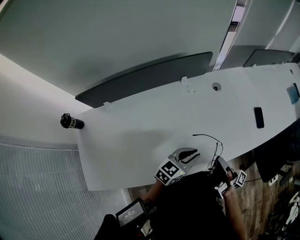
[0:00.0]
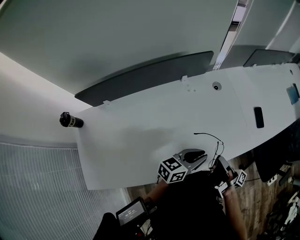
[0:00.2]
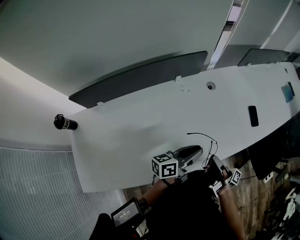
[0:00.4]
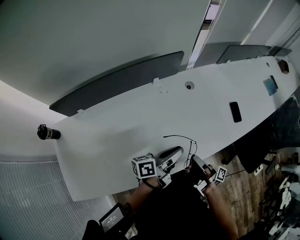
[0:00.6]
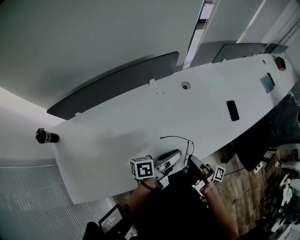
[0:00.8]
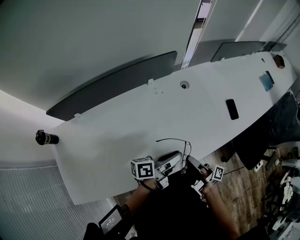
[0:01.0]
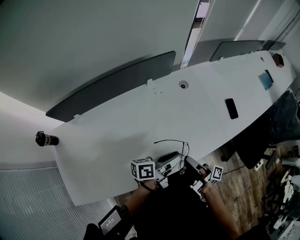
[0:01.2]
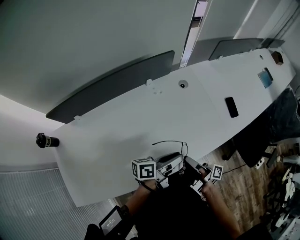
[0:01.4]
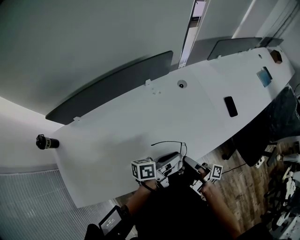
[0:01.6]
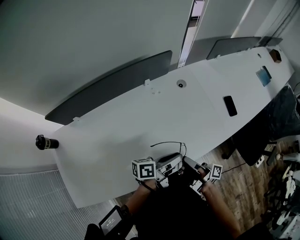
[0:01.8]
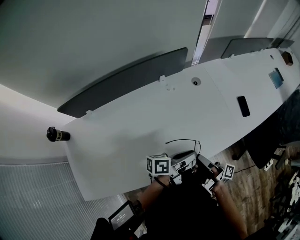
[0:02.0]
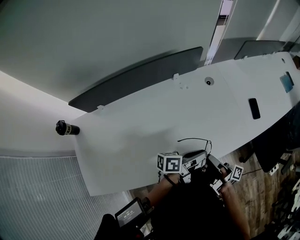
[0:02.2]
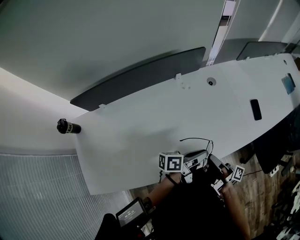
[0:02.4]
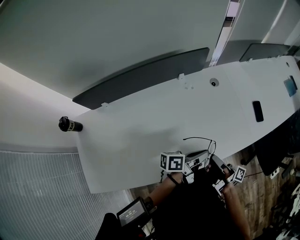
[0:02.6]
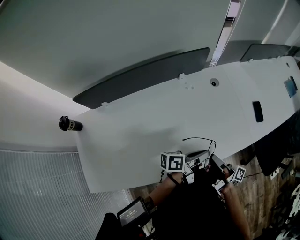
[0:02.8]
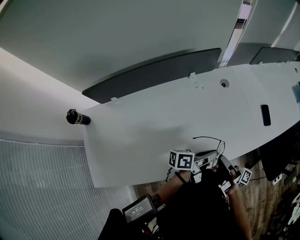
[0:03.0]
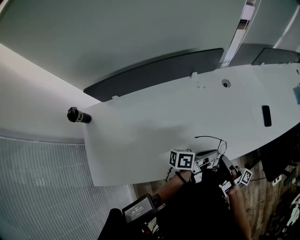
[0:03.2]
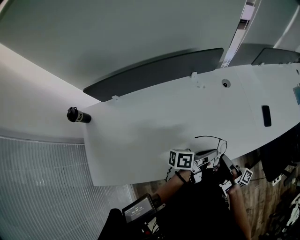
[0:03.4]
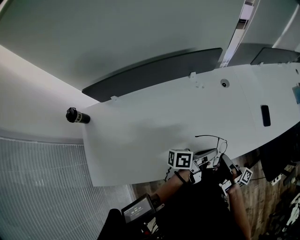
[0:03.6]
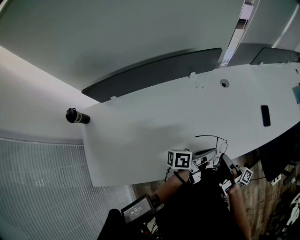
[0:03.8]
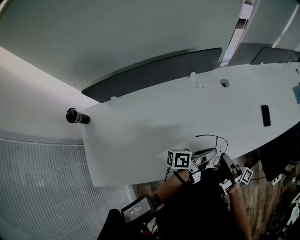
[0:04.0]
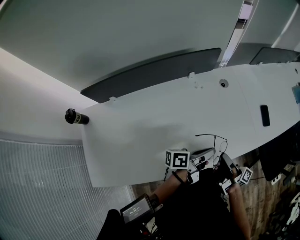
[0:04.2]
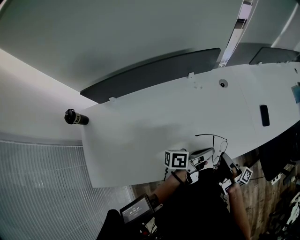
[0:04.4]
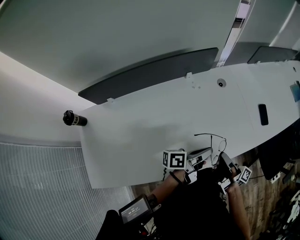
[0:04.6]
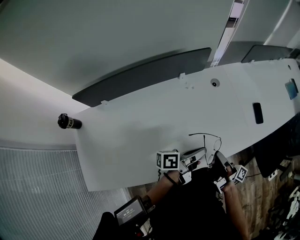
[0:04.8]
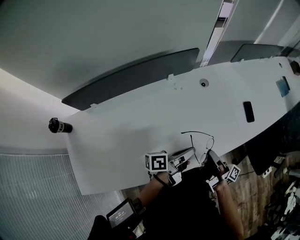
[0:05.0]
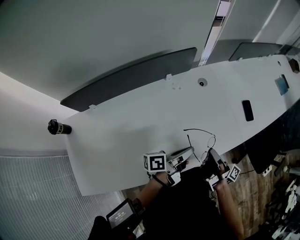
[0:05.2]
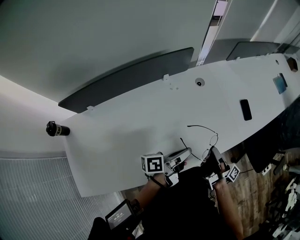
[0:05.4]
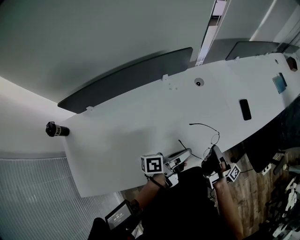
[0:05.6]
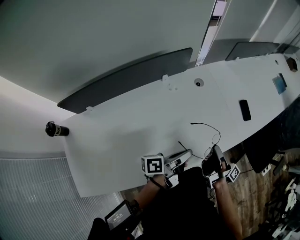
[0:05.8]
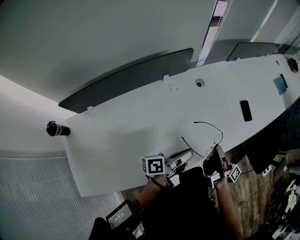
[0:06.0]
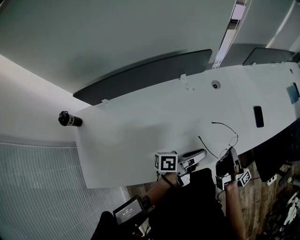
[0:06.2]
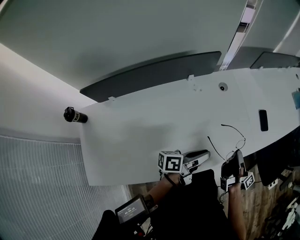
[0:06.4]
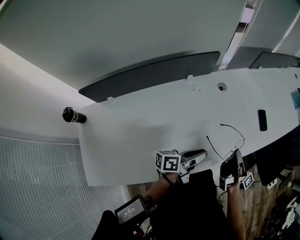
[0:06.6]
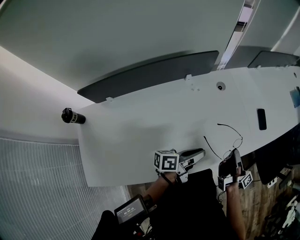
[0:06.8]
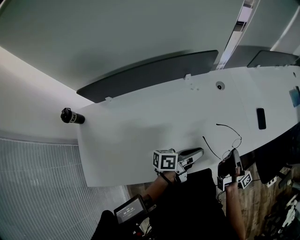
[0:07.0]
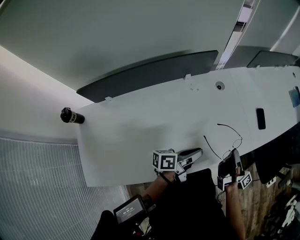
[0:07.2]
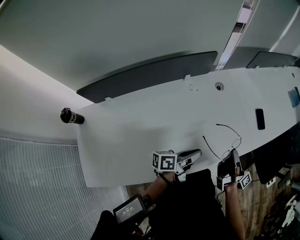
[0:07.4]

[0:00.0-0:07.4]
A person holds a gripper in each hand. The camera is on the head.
0.0 to 1.4 s: The left gripper rolls counterclockwise, seen from behind, by roughly 50 degrees.
1.4 to 3.0 s: The left gripper closes.

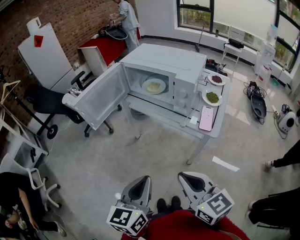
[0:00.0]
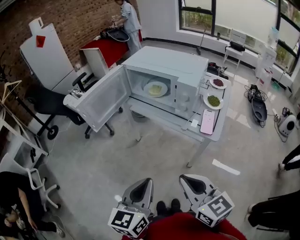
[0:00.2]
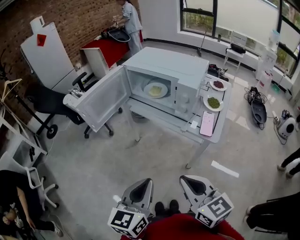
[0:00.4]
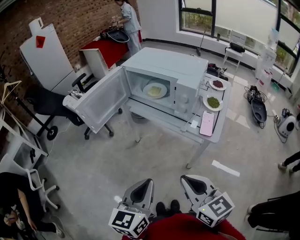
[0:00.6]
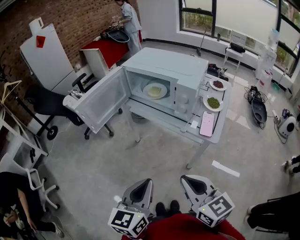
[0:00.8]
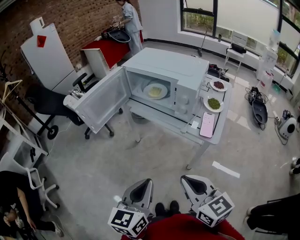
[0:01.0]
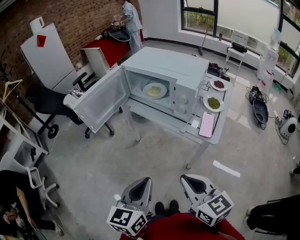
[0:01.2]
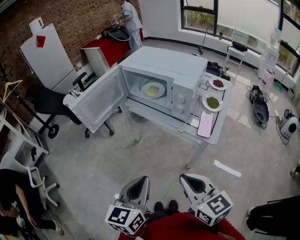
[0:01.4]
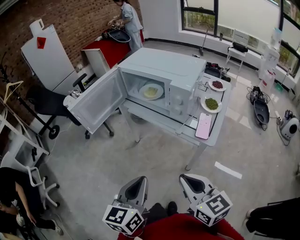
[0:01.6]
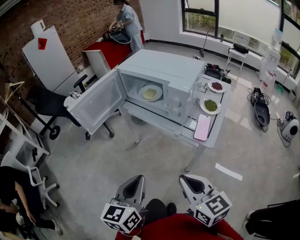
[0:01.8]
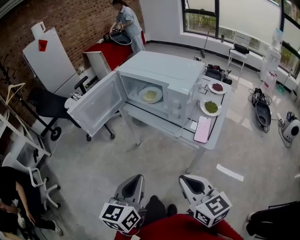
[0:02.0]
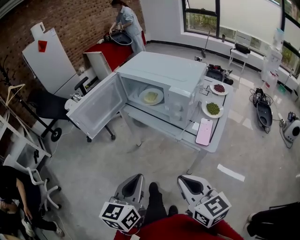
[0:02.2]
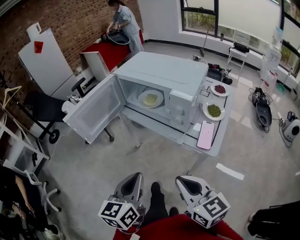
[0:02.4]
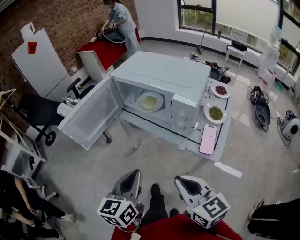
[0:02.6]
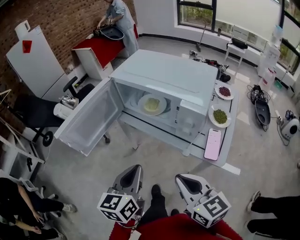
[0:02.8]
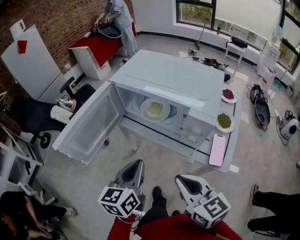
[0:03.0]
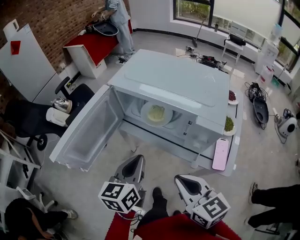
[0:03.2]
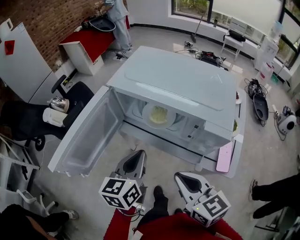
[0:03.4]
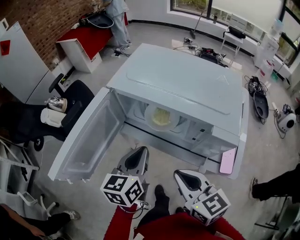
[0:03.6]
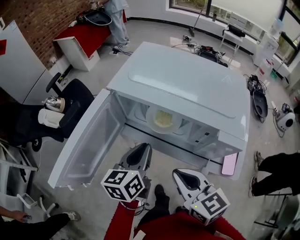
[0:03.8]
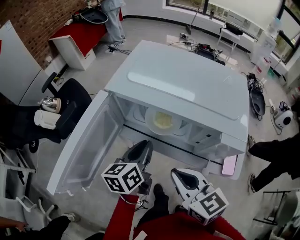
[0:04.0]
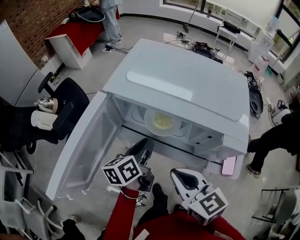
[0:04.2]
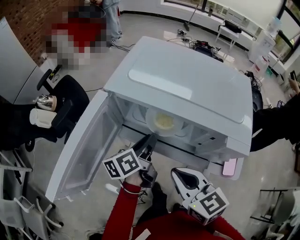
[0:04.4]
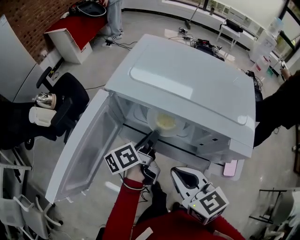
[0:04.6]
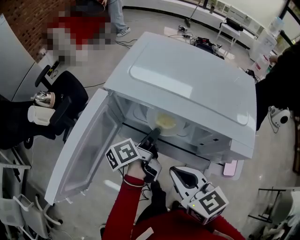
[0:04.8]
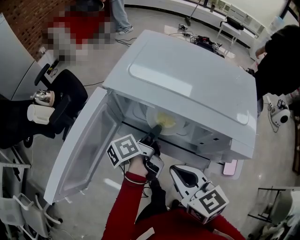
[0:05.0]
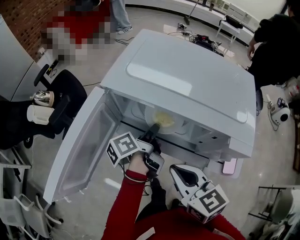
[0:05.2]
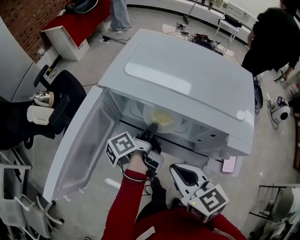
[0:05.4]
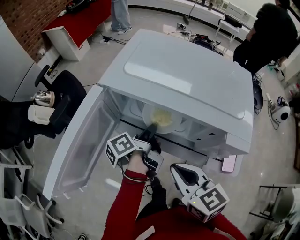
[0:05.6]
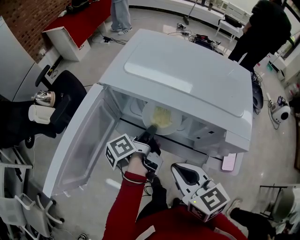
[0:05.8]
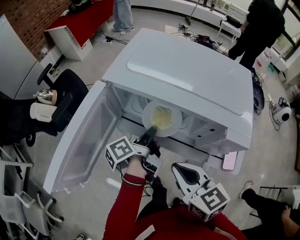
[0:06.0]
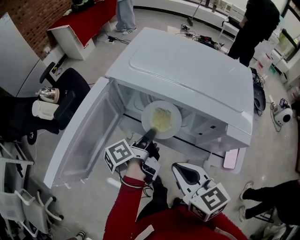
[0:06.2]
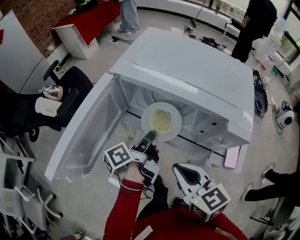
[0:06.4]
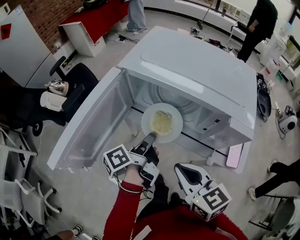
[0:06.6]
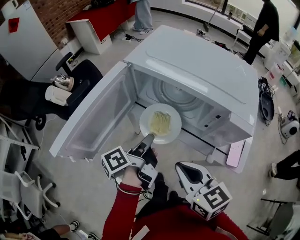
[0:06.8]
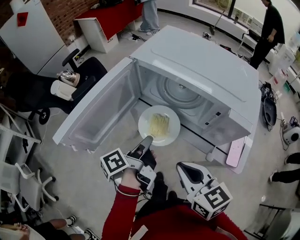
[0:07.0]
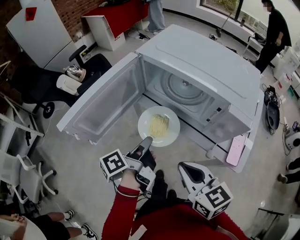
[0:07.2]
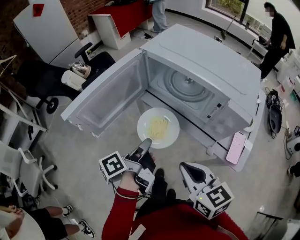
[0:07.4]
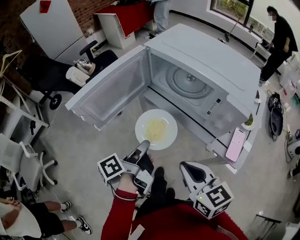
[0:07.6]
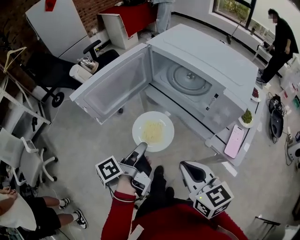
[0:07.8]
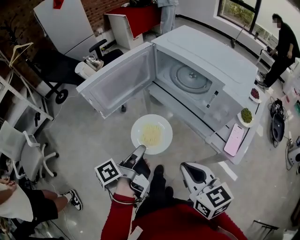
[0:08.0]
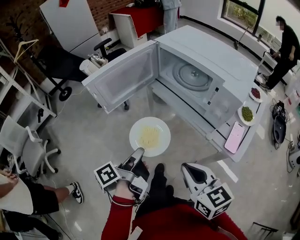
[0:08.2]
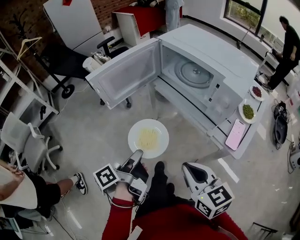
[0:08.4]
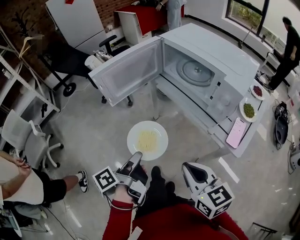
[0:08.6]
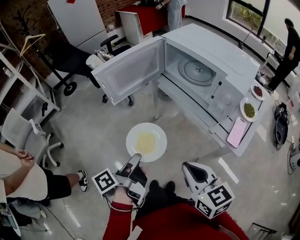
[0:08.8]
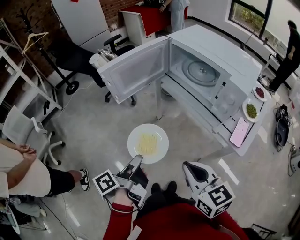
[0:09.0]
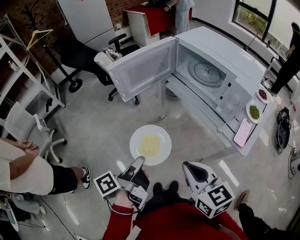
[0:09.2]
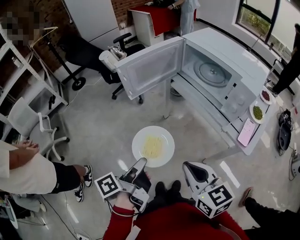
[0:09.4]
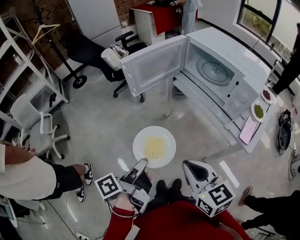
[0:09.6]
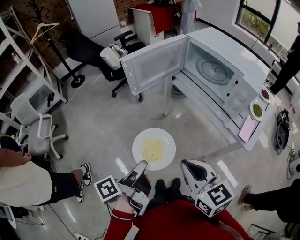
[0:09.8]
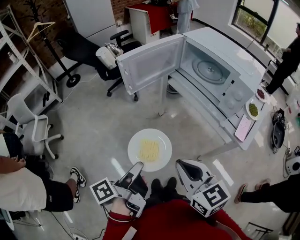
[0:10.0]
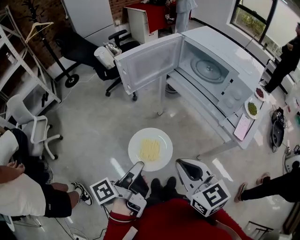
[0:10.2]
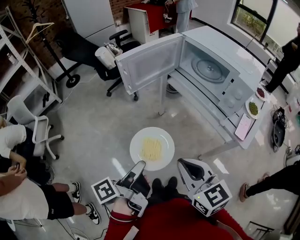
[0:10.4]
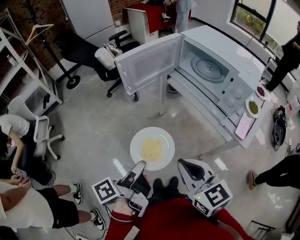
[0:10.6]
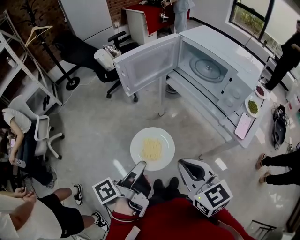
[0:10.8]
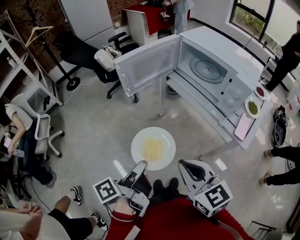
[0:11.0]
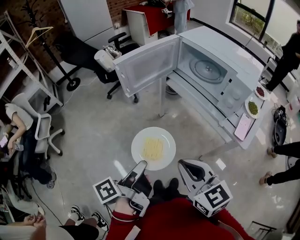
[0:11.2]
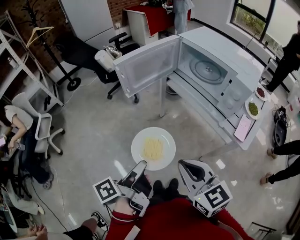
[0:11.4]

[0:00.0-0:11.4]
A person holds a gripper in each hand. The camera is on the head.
0.0 to 1.4 s: There are only small adjustments of the grippers.
1.4 to 2.8 s: Both grippers travel together forward, about 15 cm.
2.8 to 4.2 s: The right gripper is displaced forward and to the left by some 15 cm, while the left gripper is displaced forward and downward by some 25 cm, and changes its angle by about 30 degrees.
4.2 to 5.6 s: The left gripper turns by some 40 degrees.
5.6 to 7.2 s: The left gripper goes roughly 15 cm backward and to the left, while the right gripper is displaced backward by about 5 cm.
7.2 to 8.6 s: The two grippers go about 20 cm backward.
8.6 to 10.0 s: The left gripper moves backward and to the left, approximately 10 cm. The right gripper travels to the left by about 10 cm.
10.0 to 11.4 s: The grippers stay close to where they were, moving slightly.

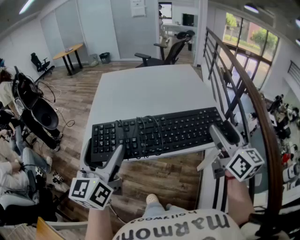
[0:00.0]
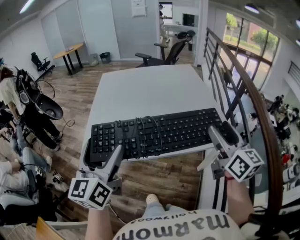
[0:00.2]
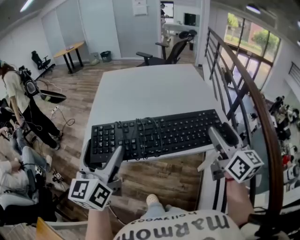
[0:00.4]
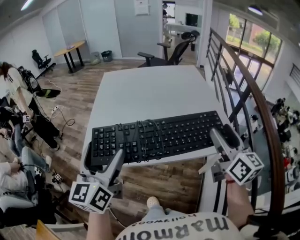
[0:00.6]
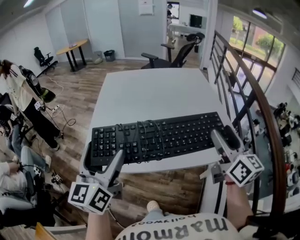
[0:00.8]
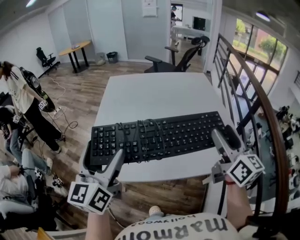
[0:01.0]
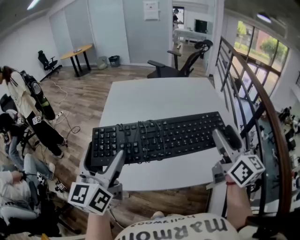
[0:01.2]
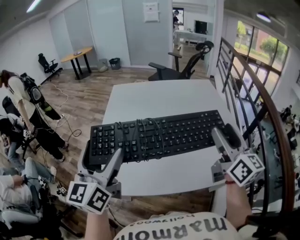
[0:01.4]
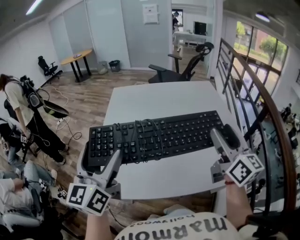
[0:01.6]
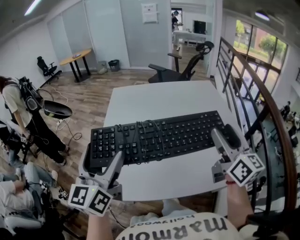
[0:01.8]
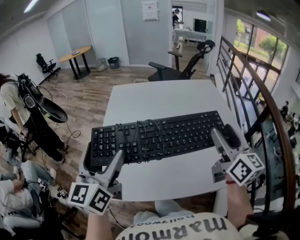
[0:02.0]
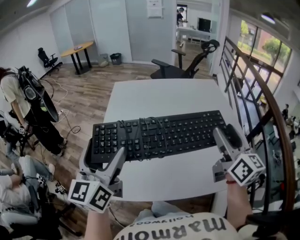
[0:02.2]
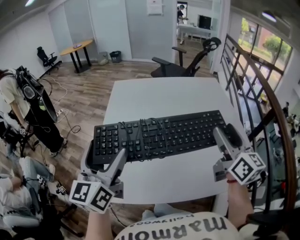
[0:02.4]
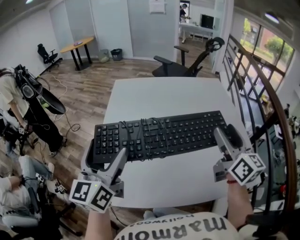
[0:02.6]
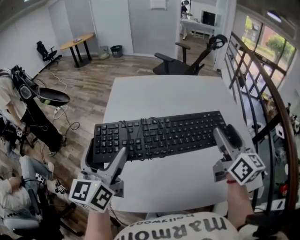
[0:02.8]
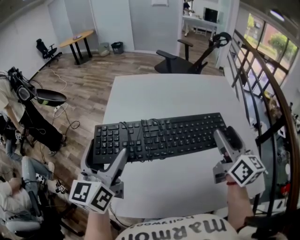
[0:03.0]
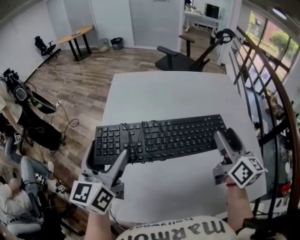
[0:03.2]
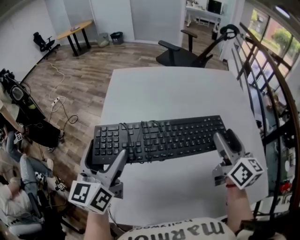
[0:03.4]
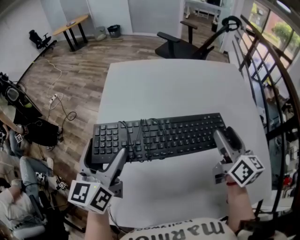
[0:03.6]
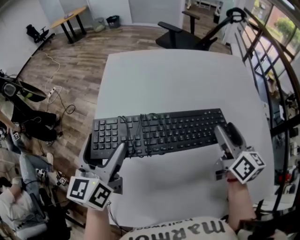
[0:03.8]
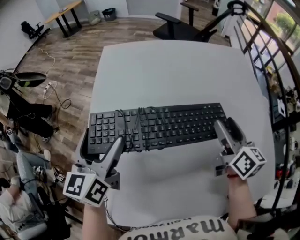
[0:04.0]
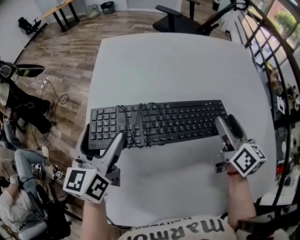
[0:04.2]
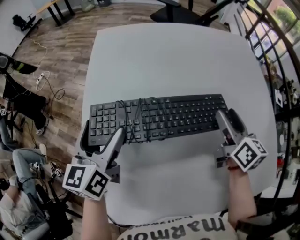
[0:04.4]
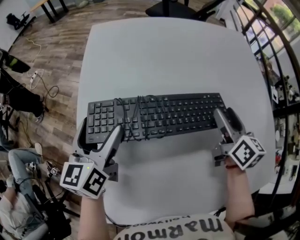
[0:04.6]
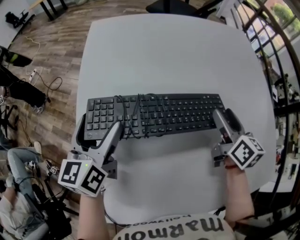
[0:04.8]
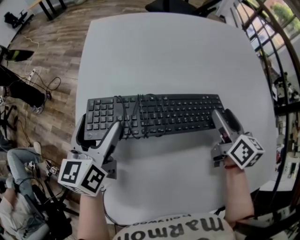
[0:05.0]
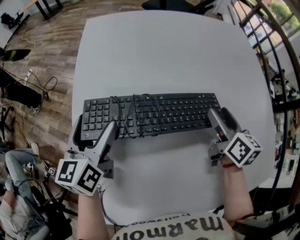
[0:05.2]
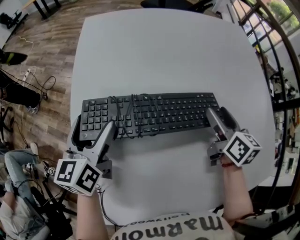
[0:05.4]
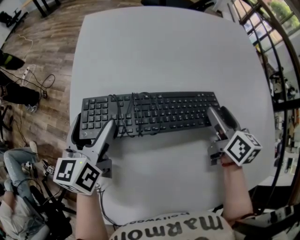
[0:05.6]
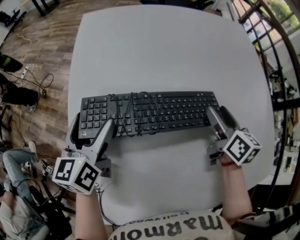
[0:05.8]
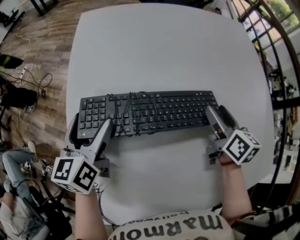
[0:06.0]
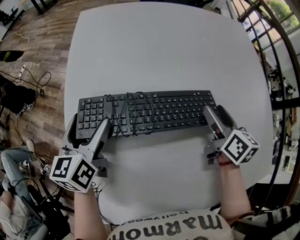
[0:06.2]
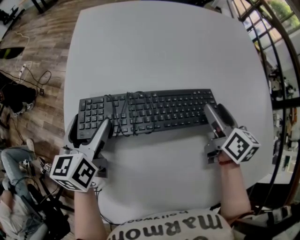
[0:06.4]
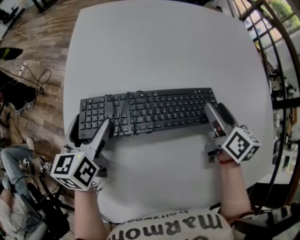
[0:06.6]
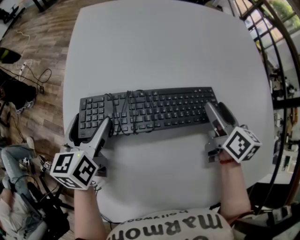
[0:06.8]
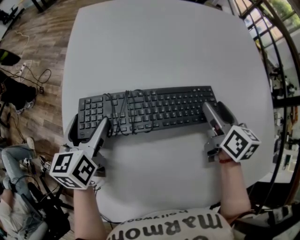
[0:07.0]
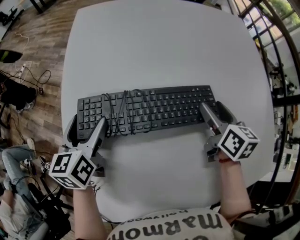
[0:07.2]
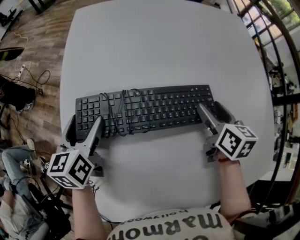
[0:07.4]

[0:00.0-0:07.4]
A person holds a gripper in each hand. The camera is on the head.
0.0 to 3.0 s: The grippers stay close to where they were, moving slightly.
3.0 to 4.4 s: The grippers move only a little.
4.4 to 6.0 s: The grippers stay close to where they were, moving slightly.
6.0 to 7.4 s: The grippers make only small movements.
